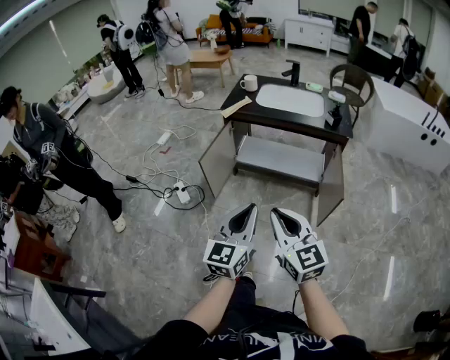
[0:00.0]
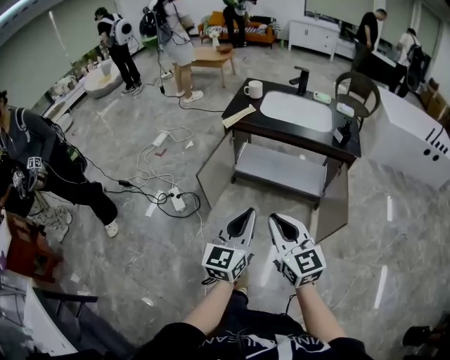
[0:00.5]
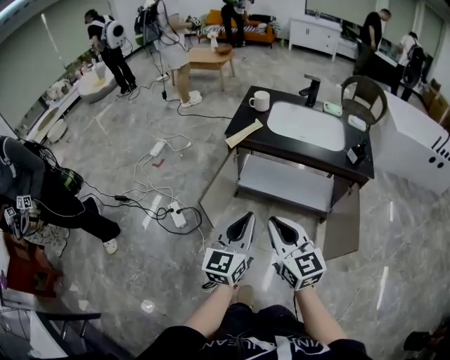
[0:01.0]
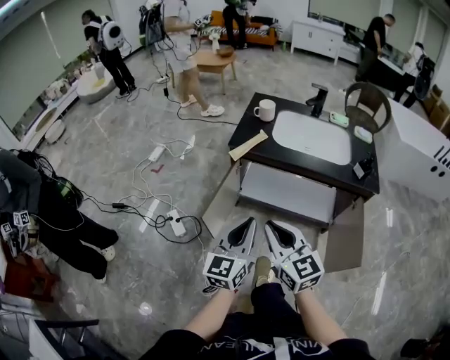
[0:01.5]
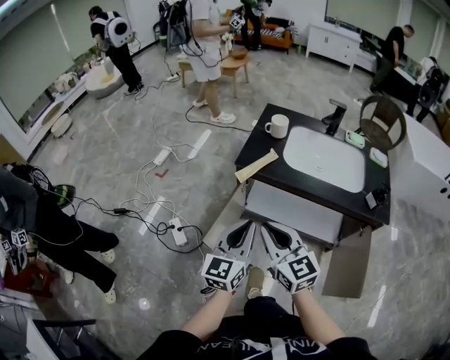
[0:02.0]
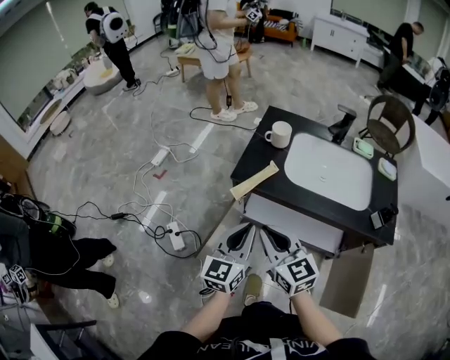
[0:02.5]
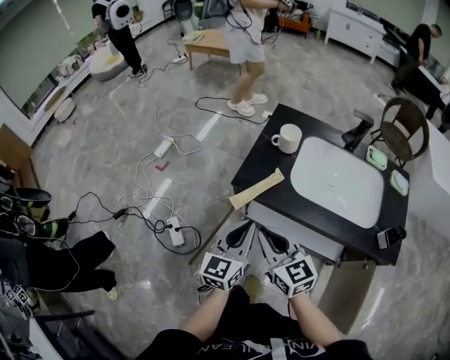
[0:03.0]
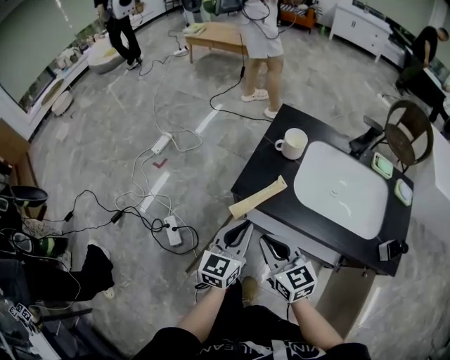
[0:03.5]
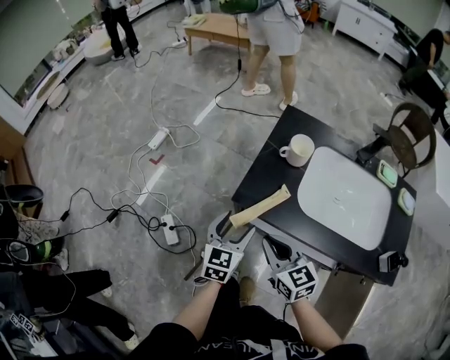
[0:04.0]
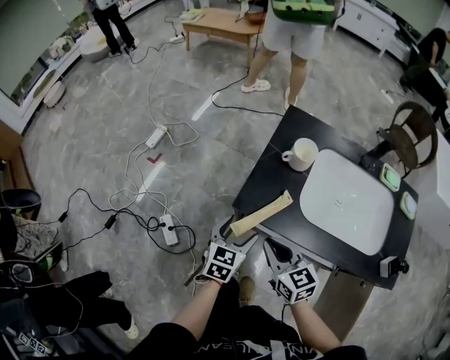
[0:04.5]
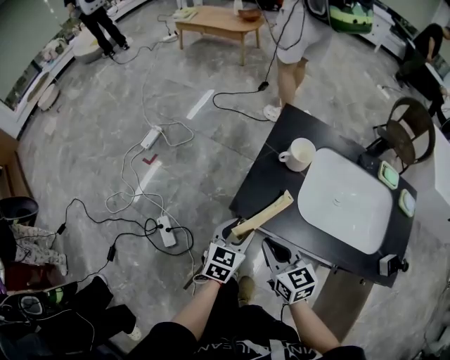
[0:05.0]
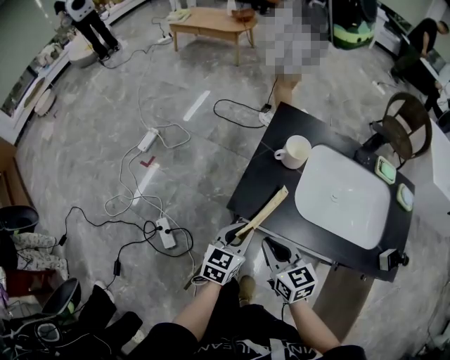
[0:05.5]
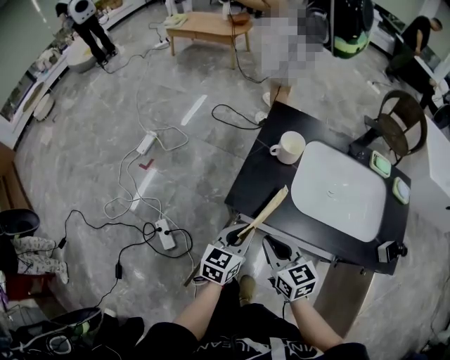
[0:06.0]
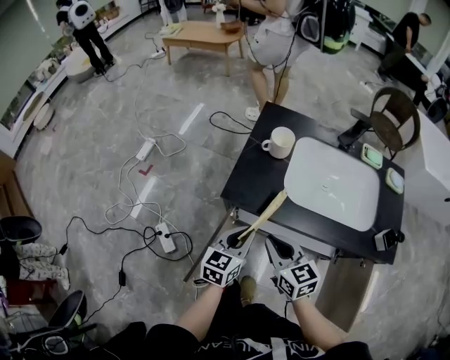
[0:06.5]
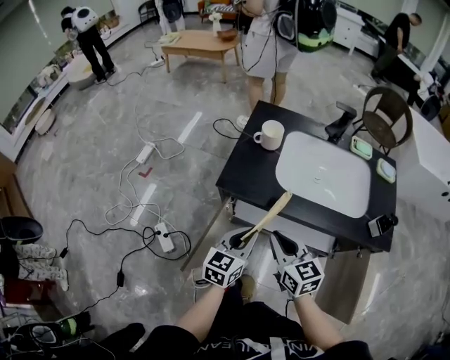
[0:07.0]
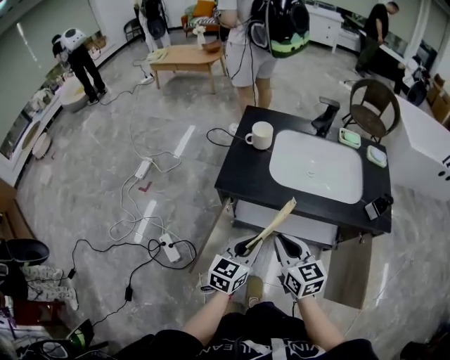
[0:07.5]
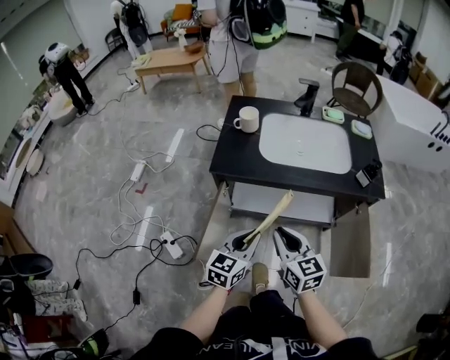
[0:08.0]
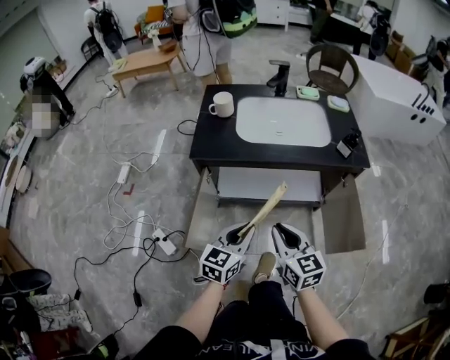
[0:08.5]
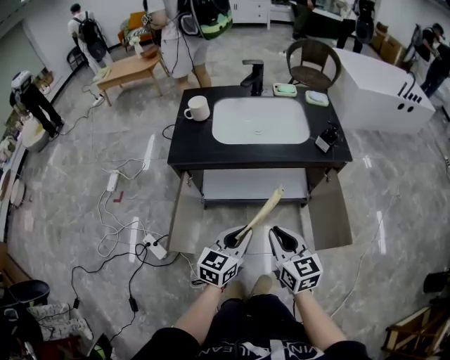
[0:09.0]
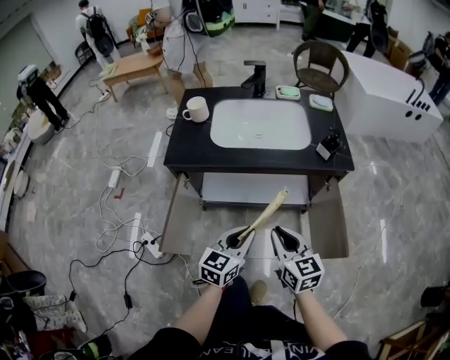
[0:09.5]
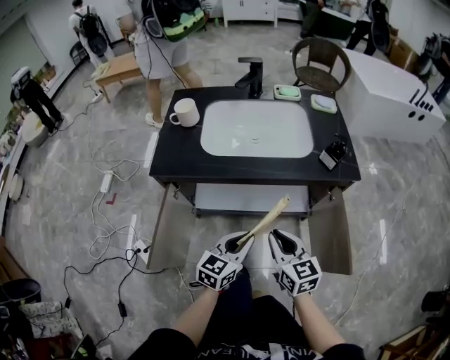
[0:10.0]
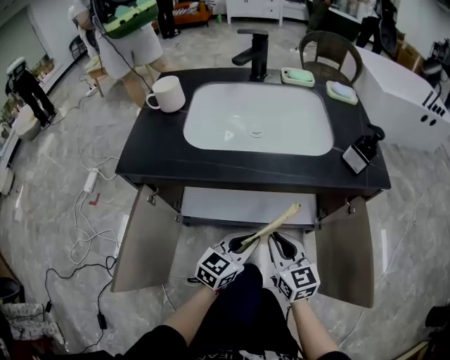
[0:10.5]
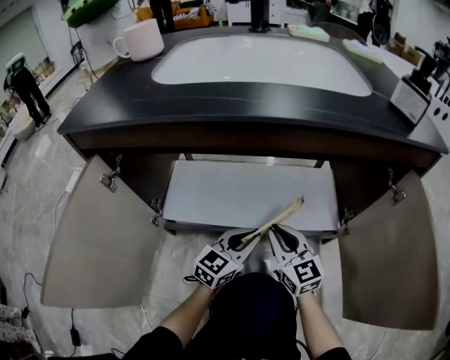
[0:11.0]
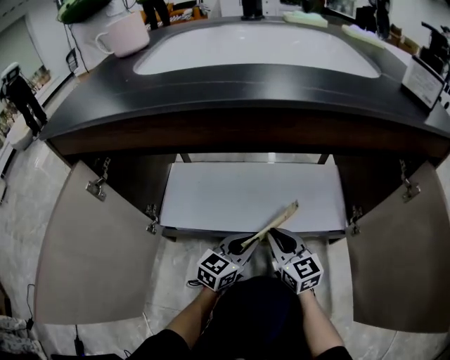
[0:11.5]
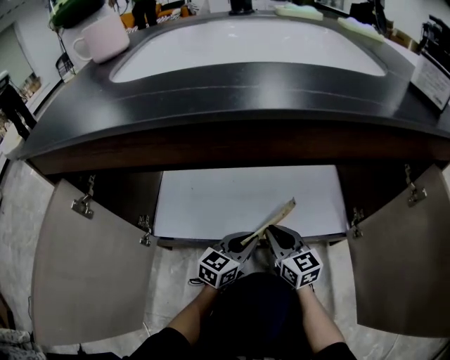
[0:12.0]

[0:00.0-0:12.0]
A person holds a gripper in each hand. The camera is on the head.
0:00.0 to 0:02.0: The two grippers travel together, forward, roughly 40 cm.
0:02.0 to 0:04.0: The two grippers go some 25 cm forward and downward. The left gripper changes its angle by some 20 degrees, and opens.
0:04.0 to 0:06.0: The left gripper closes its fingers.
0:06.0 to 0:08.0: The right gripper moves backward and to the right, roughly 20 cm, and rotates about 20 degrees. The left gripper heads backward, covering roughly 20 cm.
0:08.0 to 0:10.0: The two grippers go some 20 cm to the right and downward.
0:10.0 to 0:12.0: Both grippers move downward and forward, approximately 50 cm.

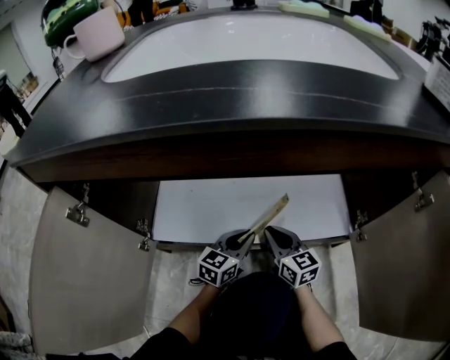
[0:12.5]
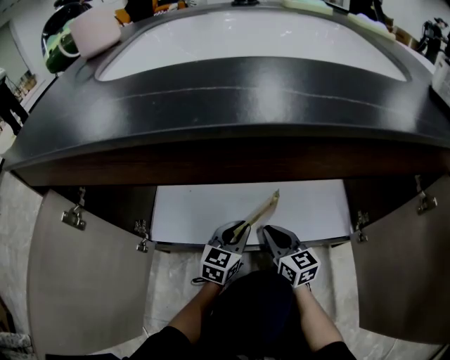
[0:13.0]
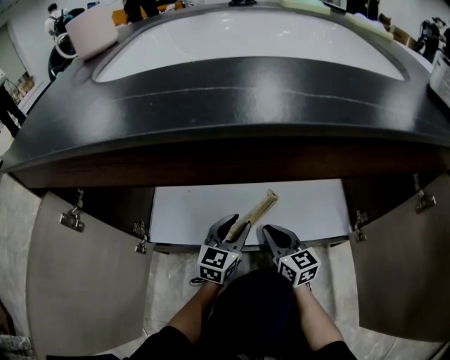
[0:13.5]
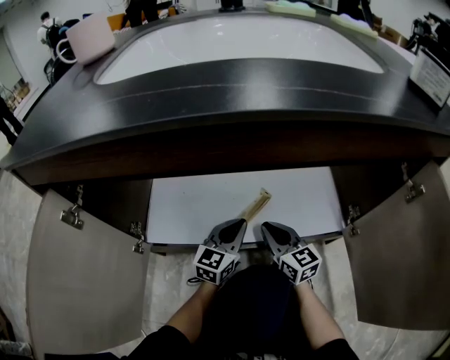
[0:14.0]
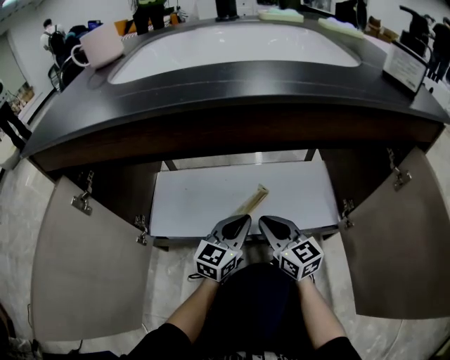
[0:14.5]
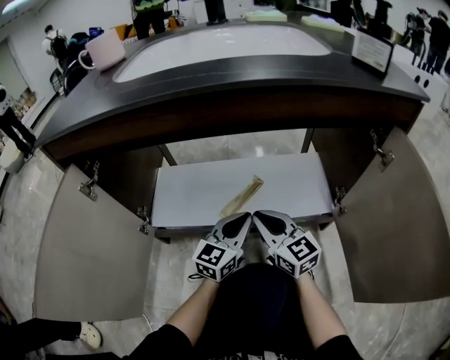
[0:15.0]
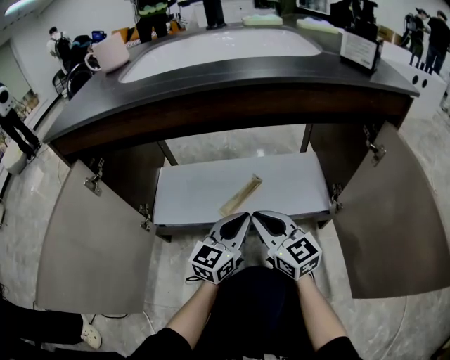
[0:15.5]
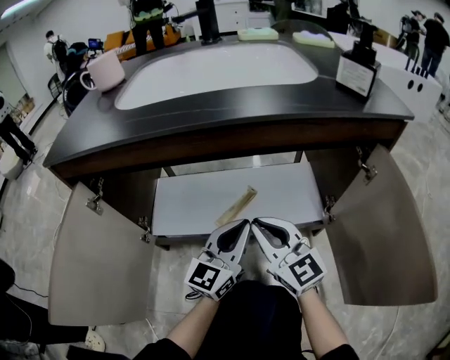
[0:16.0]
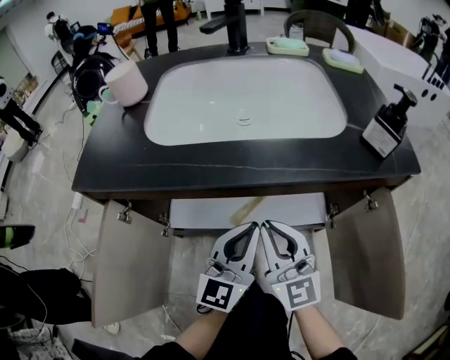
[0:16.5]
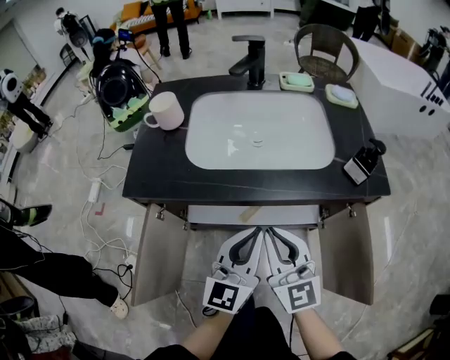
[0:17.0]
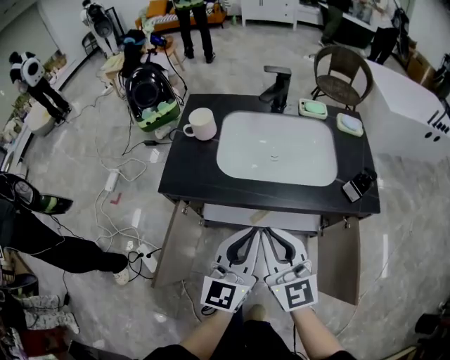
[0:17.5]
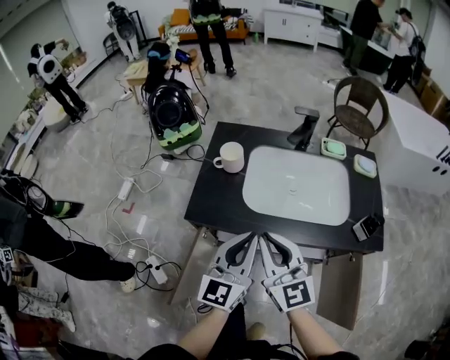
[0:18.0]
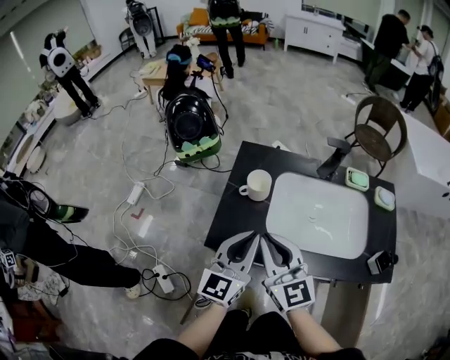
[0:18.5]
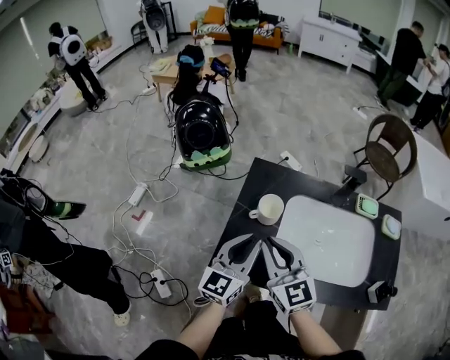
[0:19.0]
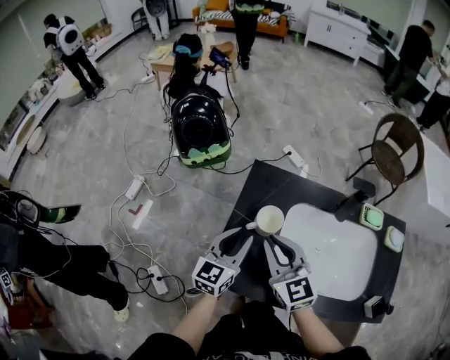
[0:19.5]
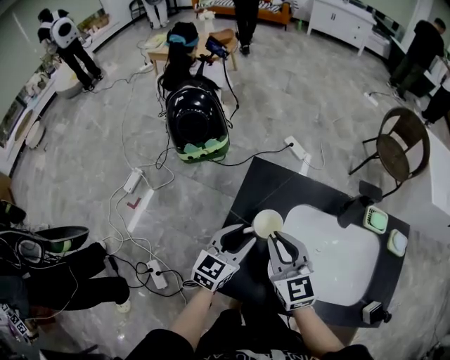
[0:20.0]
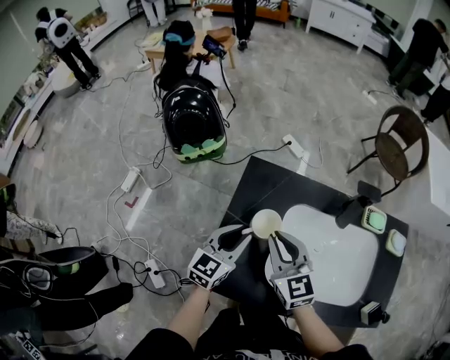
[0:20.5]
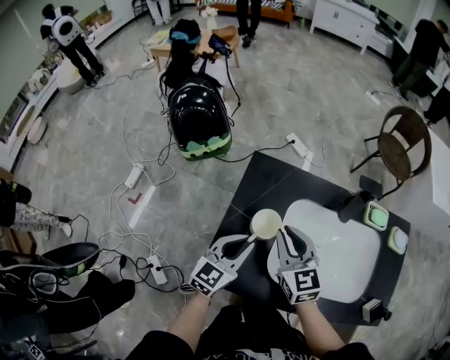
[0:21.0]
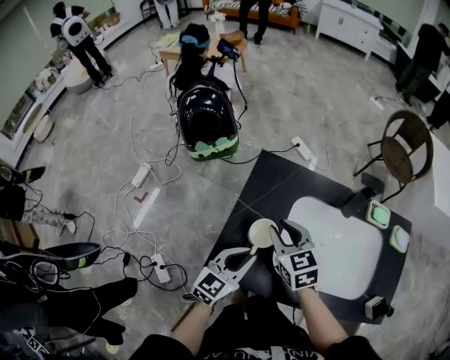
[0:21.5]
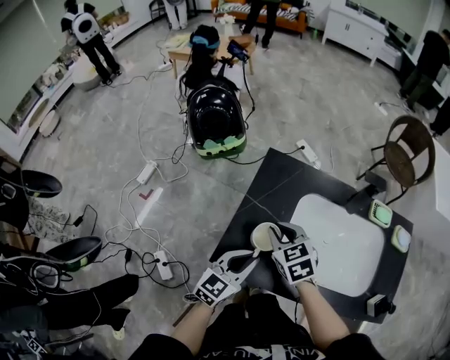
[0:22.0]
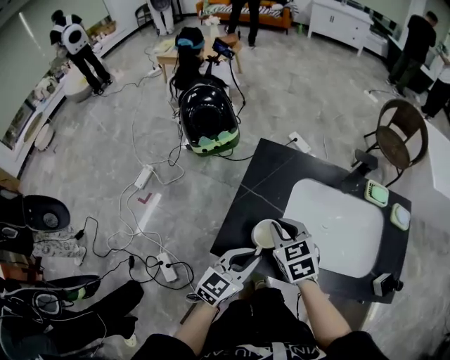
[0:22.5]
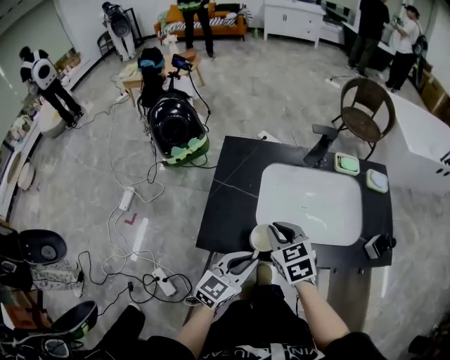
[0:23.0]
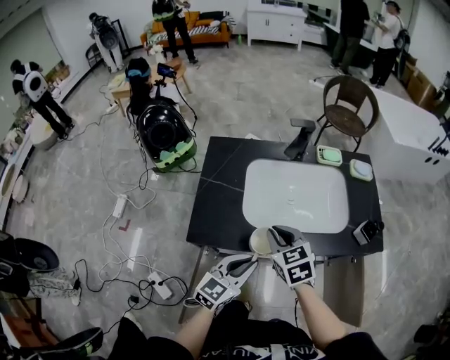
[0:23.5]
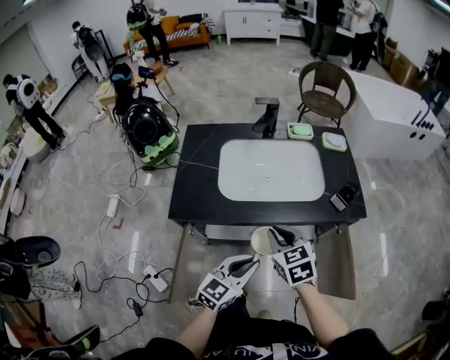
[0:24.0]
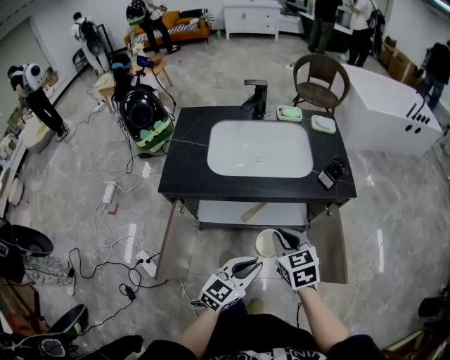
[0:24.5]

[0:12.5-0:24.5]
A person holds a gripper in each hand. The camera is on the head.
0:12.5 to 0:14.5: Both grippers move upward, about 10 cm. The left gripper opens, then closes again.
0:14.5 to 0:16.5: Both grippers travel together upward, approximately 30 cm. The right gripper turns by approximately 20 degrees.
0:16.5 to 0:18.5: The two grippers go roughly 40 cm upward and to the left.
0:18.5 to 0:20.5: The right gripper shifts roughly 20 cm forward, while the left gripper moves forward and downward, roughly 25 cm, and changes its angle by roughly 20 degrees.
0:20.5 to 0:22.5: The right gripper shifts roughly 5 cm backward, and swivels approximately 20 degrees, while the left gripper shifts some 15 cm backward.
0:22.5 to 0:24.5: The left gripper heads backward and to the right, covering approximately 40 cm; the right gripper goes approximately 40 cm to the right and backward, and changes its angle by roughly 20 degrees.

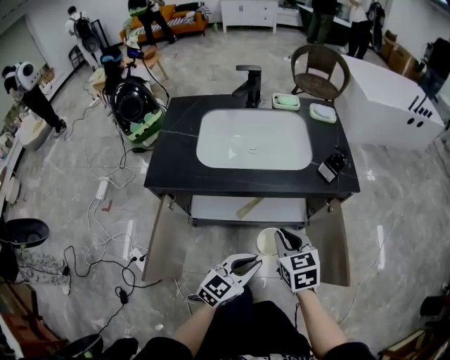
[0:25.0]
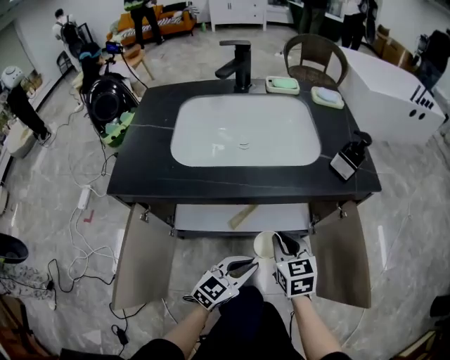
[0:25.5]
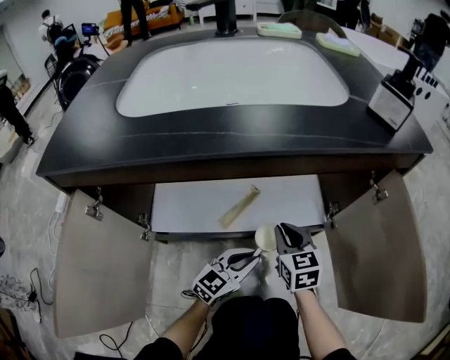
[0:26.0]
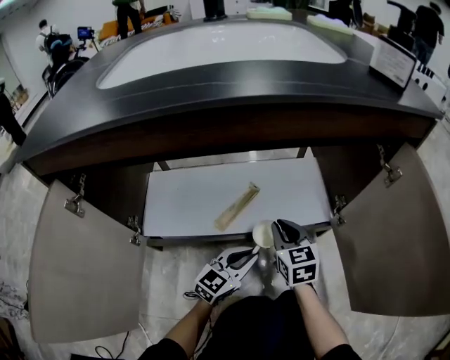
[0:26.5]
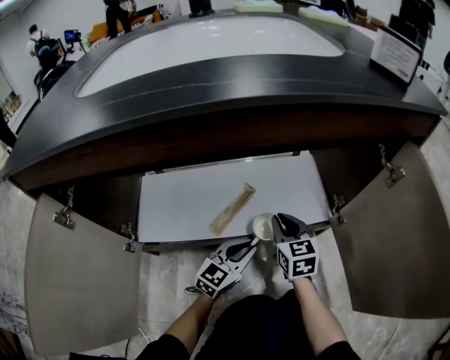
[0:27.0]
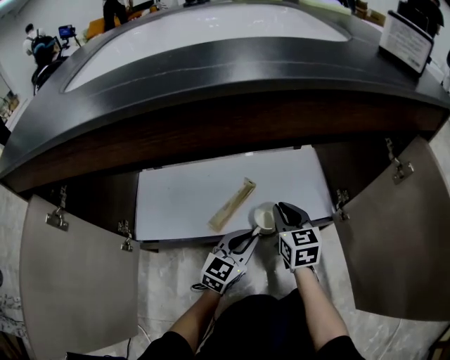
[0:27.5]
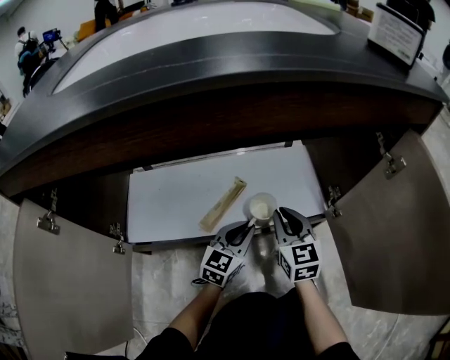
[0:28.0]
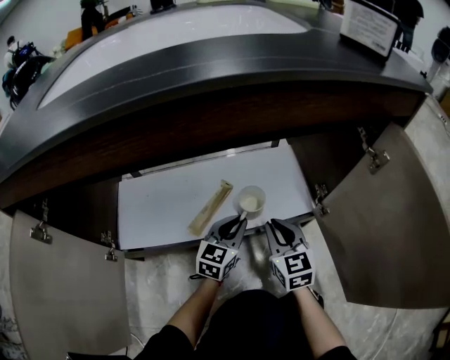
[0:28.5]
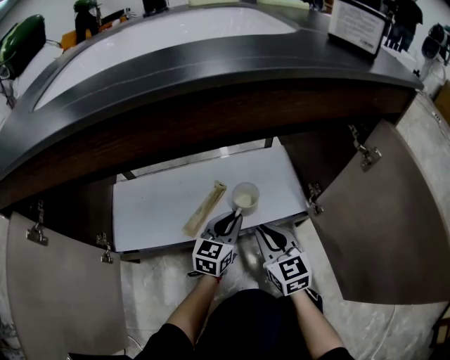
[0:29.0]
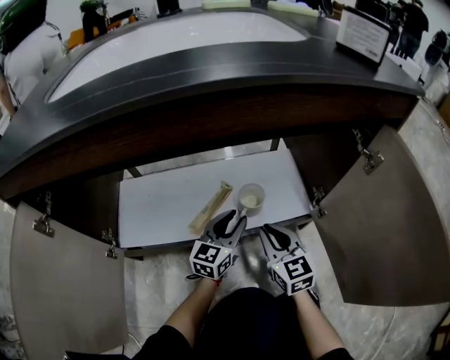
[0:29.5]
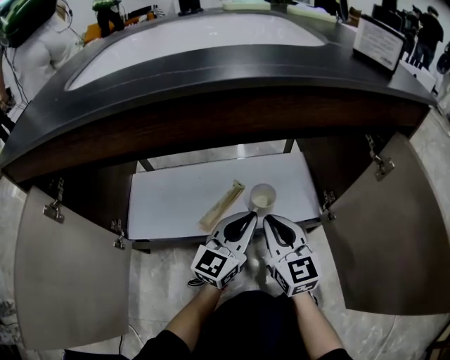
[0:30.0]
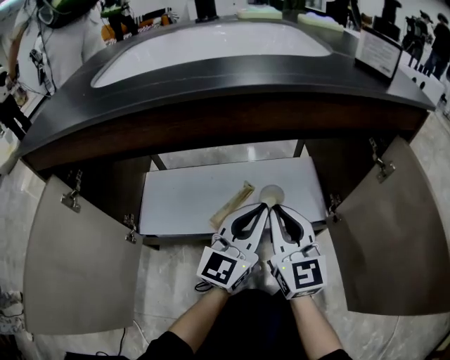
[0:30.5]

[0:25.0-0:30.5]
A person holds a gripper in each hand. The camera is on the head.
0:25.0 to 0:27.0: The left gripper travels downward and forward by approximately 50 cm, while the right gripper travels downward by roughly 50 cm.
0:27.0 to 0:28.5: The left gripper goes roughly 5 cm forward.
0:28.5 to 0:30.5: The two grippers go about 20 cm upward. The right gripper changes its angle by approximately 20 degrees, while the left gripper changes its angle by some 30 degrees.
